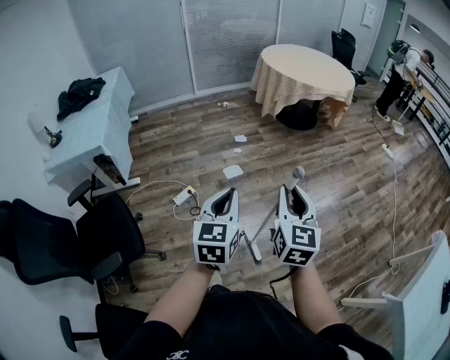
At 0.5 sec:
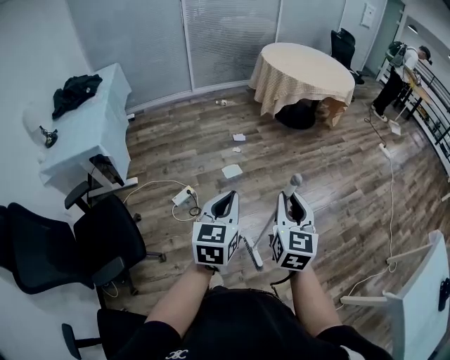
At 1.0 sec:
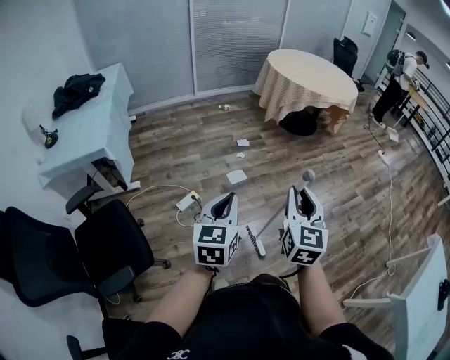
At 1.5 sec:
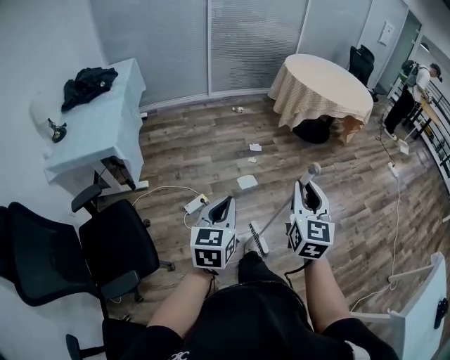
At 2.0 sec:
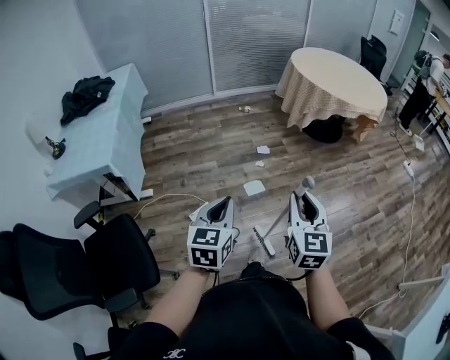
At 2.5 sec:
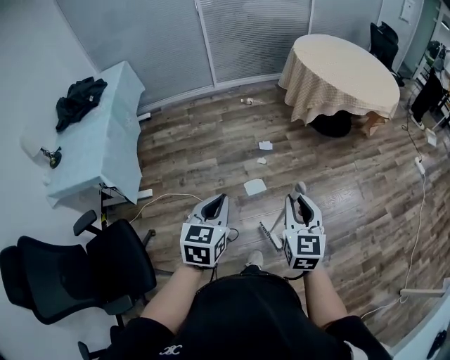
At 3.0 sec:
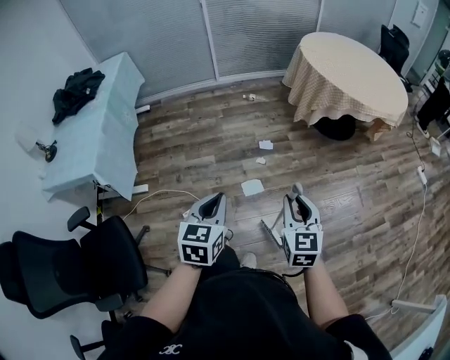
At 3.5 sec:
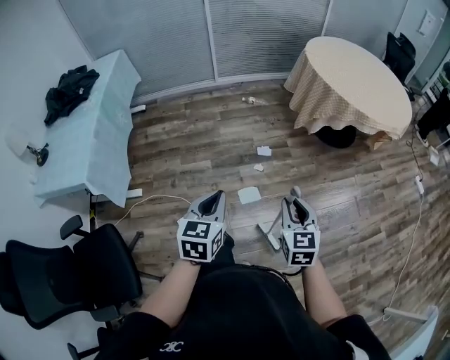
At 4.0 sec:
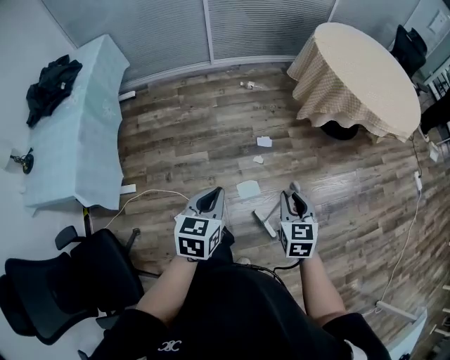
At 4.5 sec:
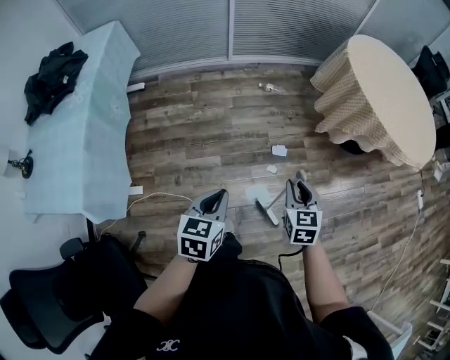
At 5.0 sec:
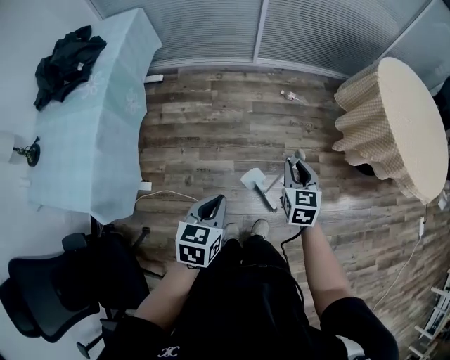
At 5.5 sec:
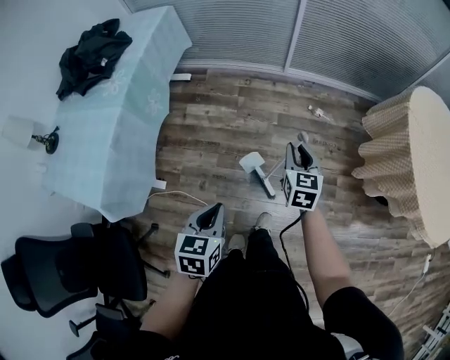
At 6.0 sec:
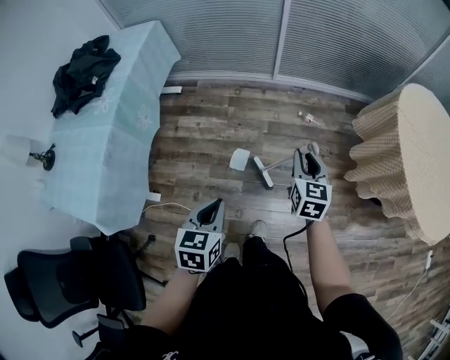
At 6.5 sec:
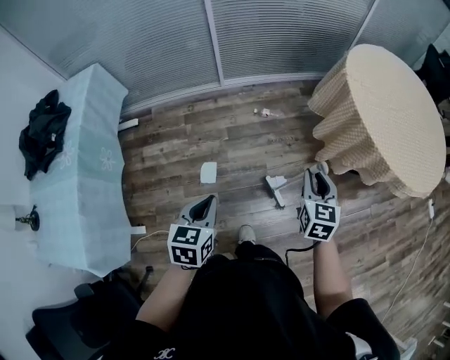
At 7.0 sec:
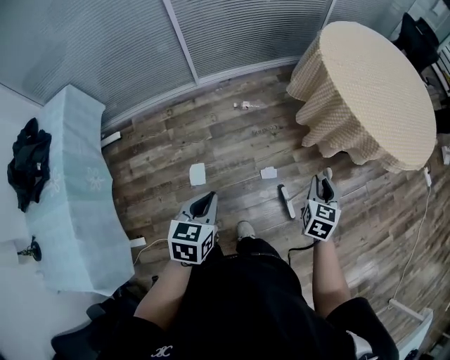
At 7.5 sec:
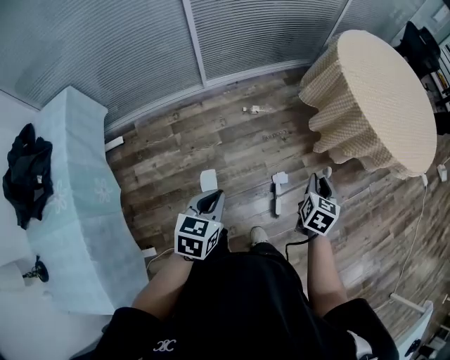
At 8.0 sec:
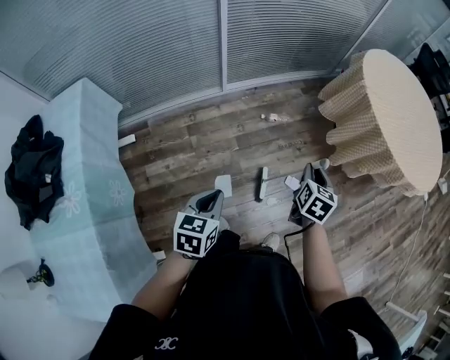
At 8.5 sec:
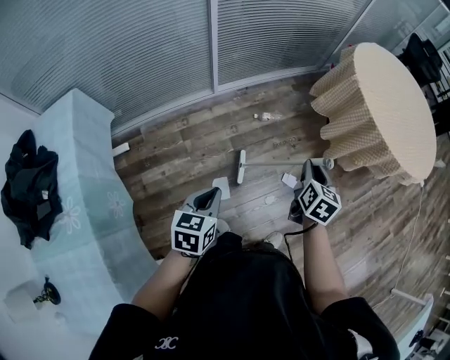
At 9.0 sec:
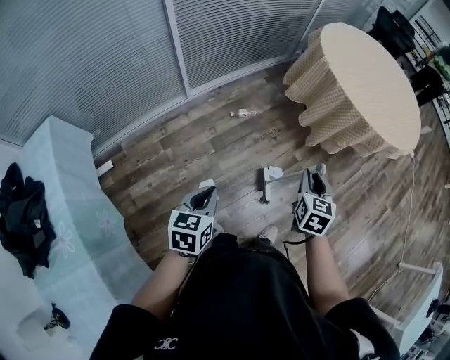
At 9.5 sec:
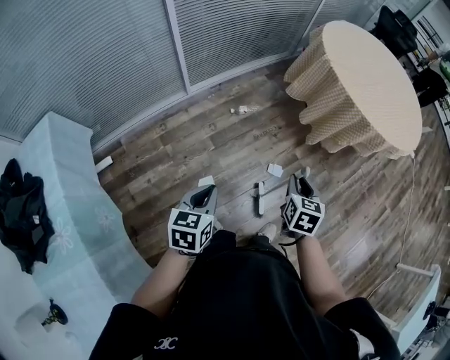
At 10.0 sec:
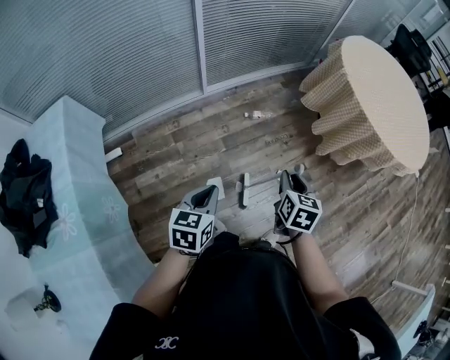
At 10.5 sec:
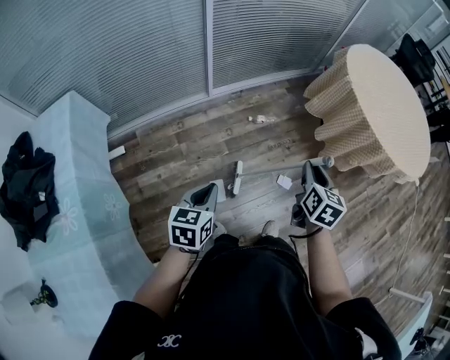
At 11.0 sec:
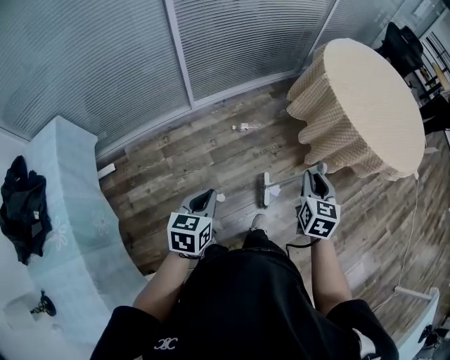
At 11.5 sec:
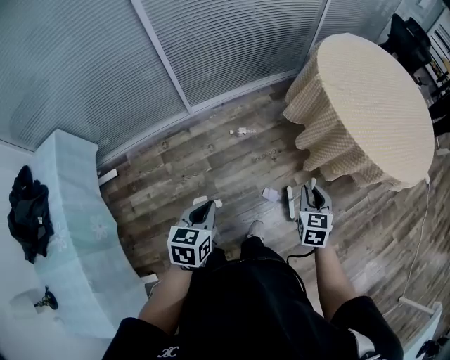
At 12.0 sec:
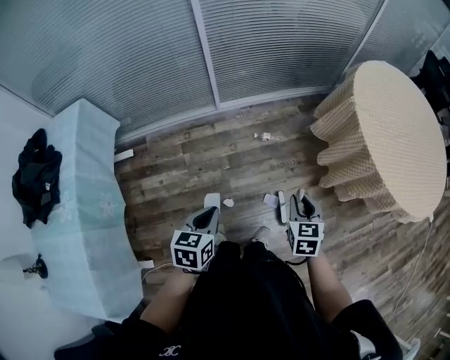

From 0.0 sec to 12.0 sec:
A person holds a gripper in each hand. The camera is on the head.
From 0.0 sec to 2.0 sec: The grippers both shift forward and to the left by roughly 25 cm.
From 2.0 sec to 4.0 sec: The right gripper goes about 40 cm forward and downward, and rotates about 20 degrees. Meanwhile the left gripper heads forward, covering approximately 35 cm.
From 4.0 sec to 6.0 sec: The right gripper heads forward, covering roughly 50 cm. Meanwhile the left gripper shifts some 30 cm forward and to the left.
From 6.0 sec to 8.0 sec: The left gripper changes place by about 25 cm, and turns by roughly 30 degrees; the right gripper swivels roughly 40 degrees.
From 8.0 sec to 10.0 sec: The right gripper heads backward, covering some 5 cm.
From 10.0 sec to 12.0 sec: The grippers both shift to the right and forward by approximately 15 cm. The right gripper swivels about 30 degrees.

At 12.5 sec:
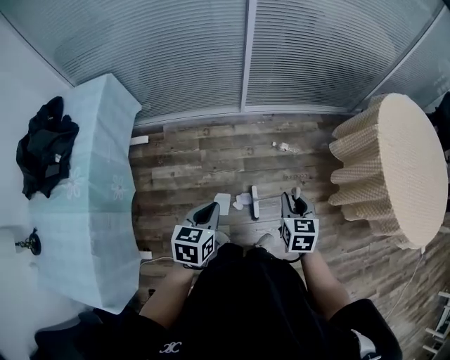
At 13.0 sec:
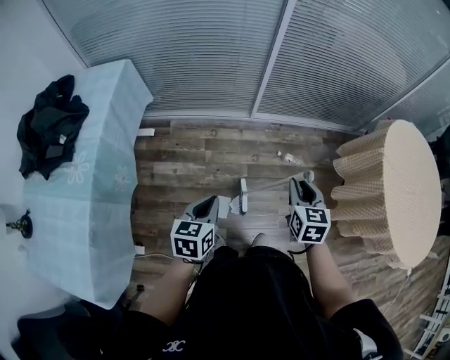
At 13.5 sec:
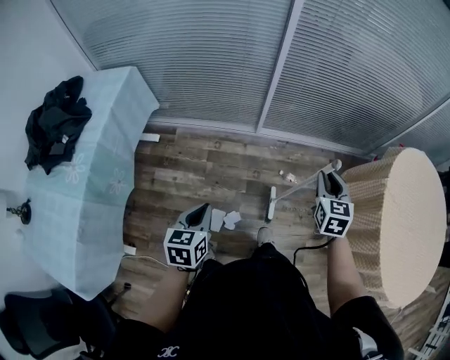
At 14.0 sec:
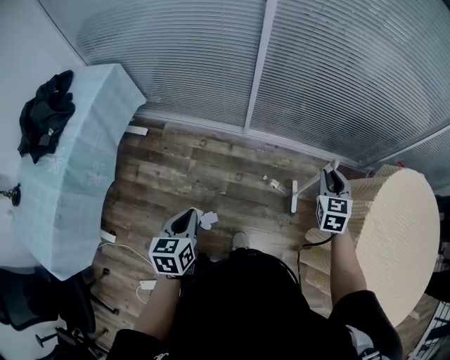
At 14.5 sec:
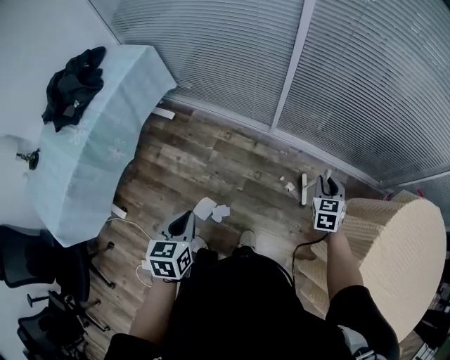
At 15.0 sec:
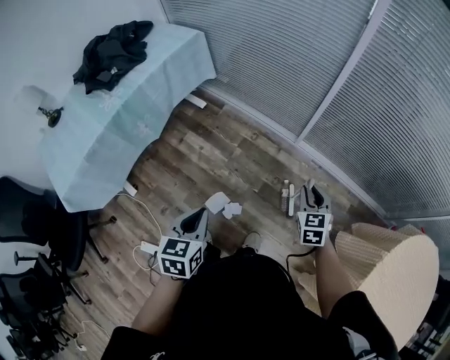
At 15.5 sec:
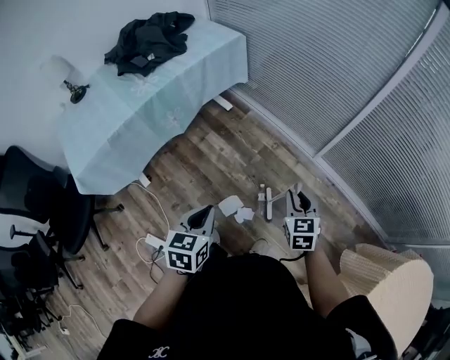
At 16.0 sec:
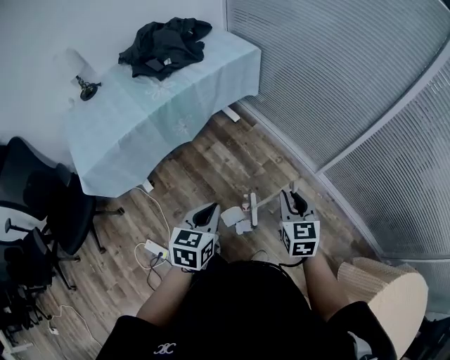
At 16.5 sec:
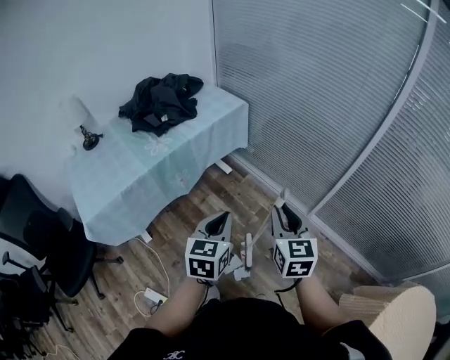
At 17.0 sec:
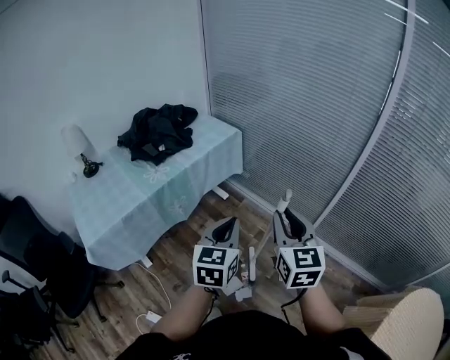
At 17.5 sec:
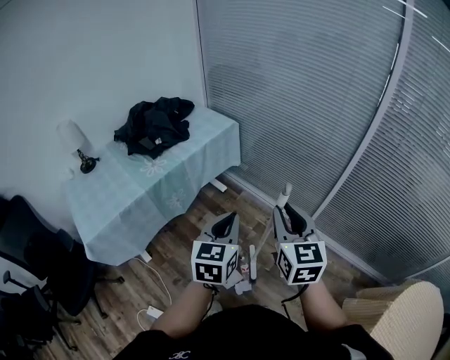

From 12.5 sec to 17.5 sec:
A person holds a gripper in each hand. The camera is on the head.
From 12.5 sec to 15.0 sec: The left gripper changes its angle by some 40 degrees; the right gripper travels upward and back again, roughly 10 cm each way, and changes its angle by approximately 40 degrees.
From 15.0 sec to 17.5 sec: The left gripper is displaced upward, forward and to the left by approximately 25 cm, and rotates approximately 20 degrees, while the right gripper heads upward and to the left, covering approximately 40 cm, and changes its angle by roughly 30 degrees.

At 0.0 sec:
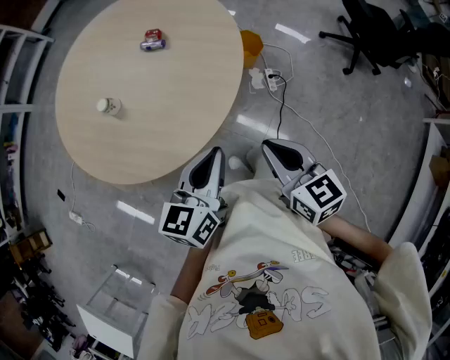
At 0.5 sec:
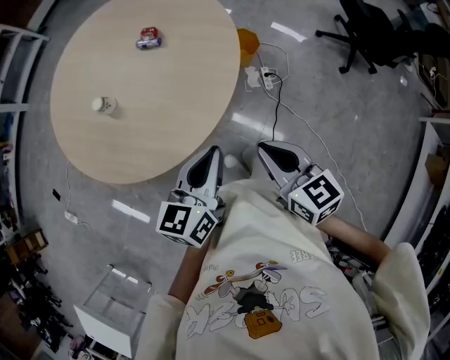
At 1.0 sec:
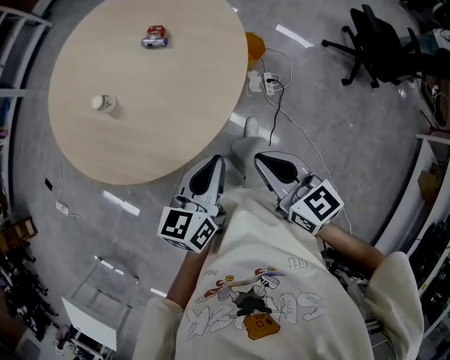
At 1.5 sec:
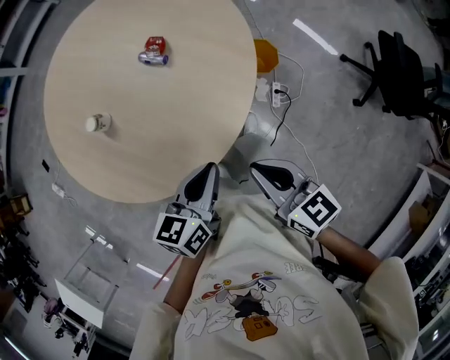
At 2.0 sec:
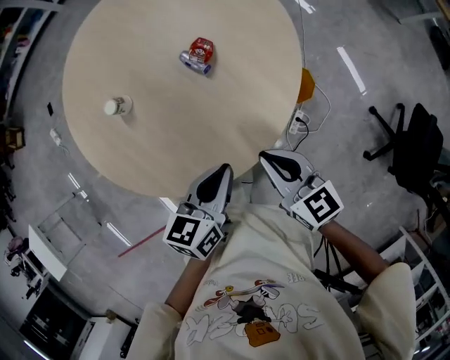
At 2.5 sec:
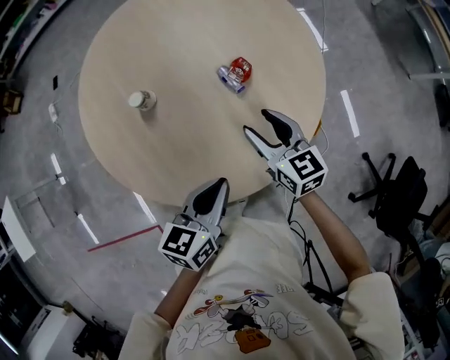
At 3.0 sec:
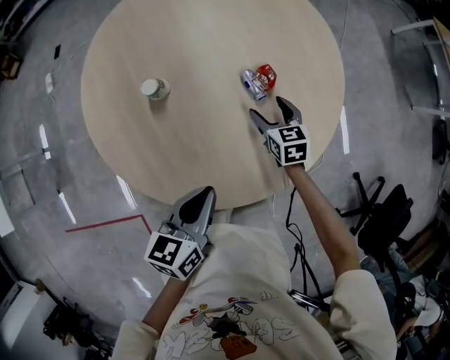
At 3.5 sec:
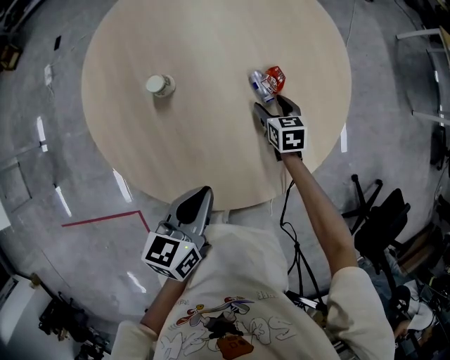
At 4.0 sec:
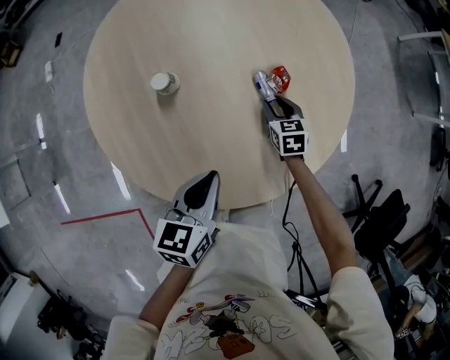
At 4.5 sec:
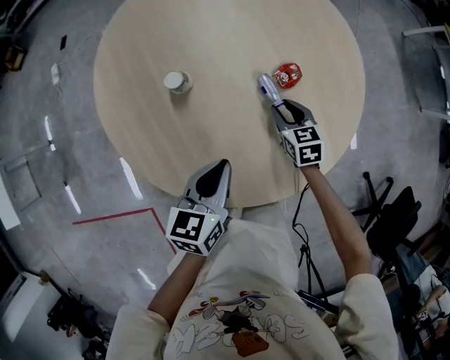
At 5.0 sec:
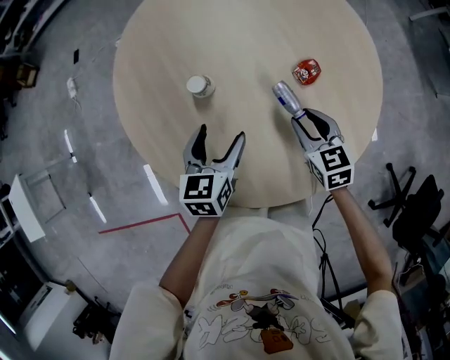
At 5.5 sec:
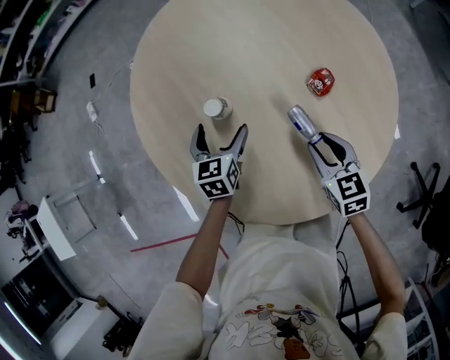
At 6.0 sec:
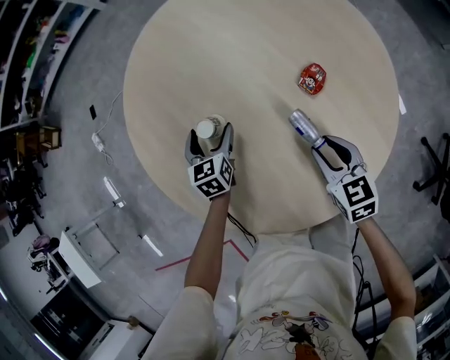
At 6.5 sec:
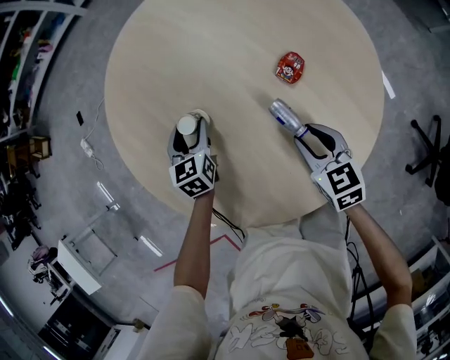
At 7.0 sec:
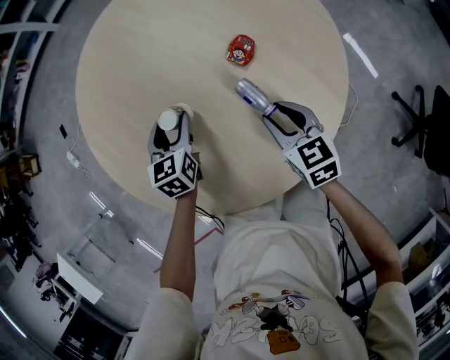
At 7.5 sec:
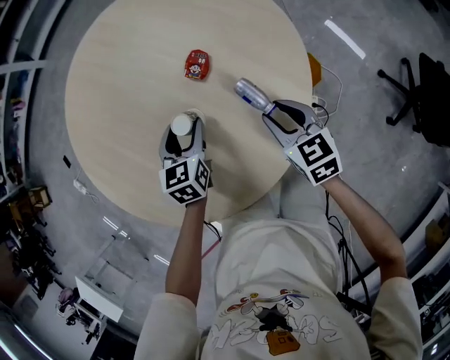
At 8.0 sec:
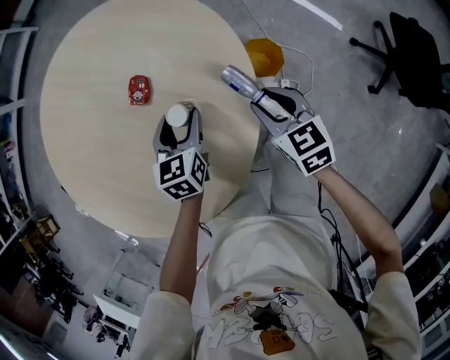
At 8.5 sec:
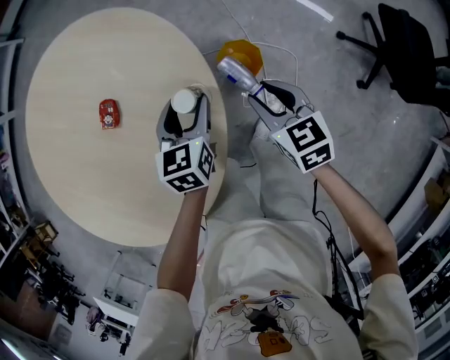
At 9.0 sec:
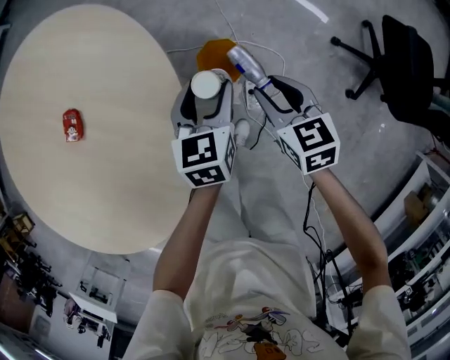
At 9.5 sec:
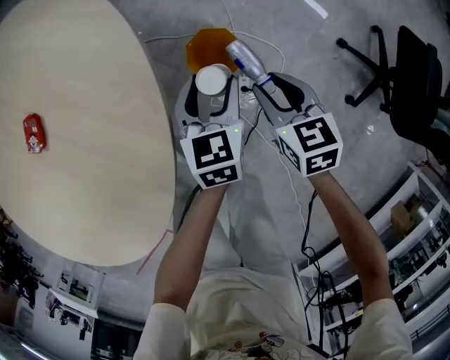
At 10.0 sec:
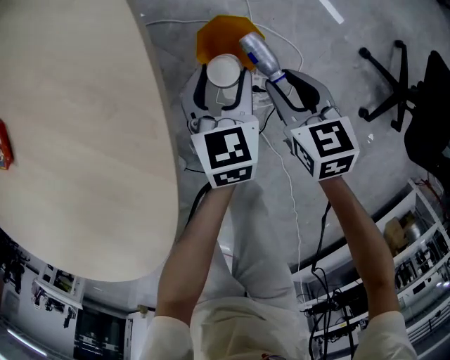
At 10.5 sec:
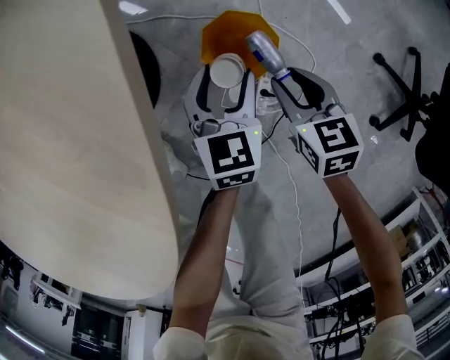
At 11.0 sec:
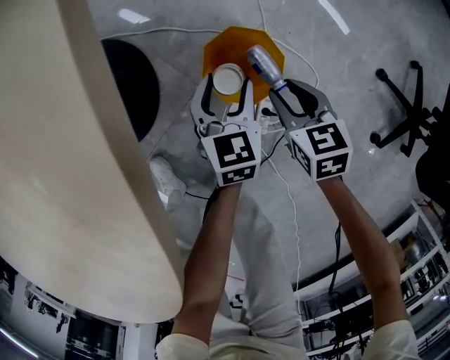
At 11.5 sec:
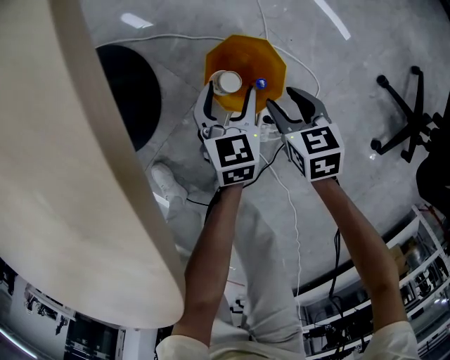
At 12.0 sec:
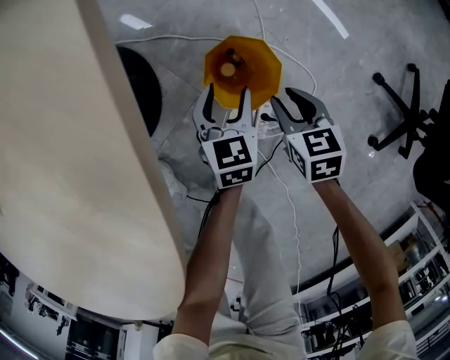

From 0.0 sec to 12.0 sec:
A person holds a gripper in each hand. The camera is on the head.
From 0.0 sec to 2.0 sec: The right gripper moves roughly 35 cm, and swivels approximately 40 degrees; the left gripper moves about 30 cm, and changes its angle by roughly 30 degrees.
From 2.0 sec to 4.0 sec: The left gripper travels to the left and forward by about 15 cm. Meanwhile the right gripper shifts about 30 cm forward and downward, swivels some 30 degrees, and opens and closes again.
From 4.0 sec to 6.0 sec: The left gripper heads forward, to the left and downward, covering about 30 cm, swivels roughly 20 degrees, and opens up; the right gripper goes approximately 15 cm upward, backward and to the left.
From 6.0 sec to 8.0 sec: The left gripper shifts by roughly 40 cm, turns by roughly 30 degrees, and closes. The right gripper ends up approximately 30 cm from where it was, and rotates approximately 20 degrees.
From 8.0 sec to 10.0 sec: The right gripper travels downward and to the right by some 35 cm, while the left gripper moves to the right and downward, some 40 cm.
From 10.0 sec to 12.0 sec: The grippers both shift downward by about 15 cm.
